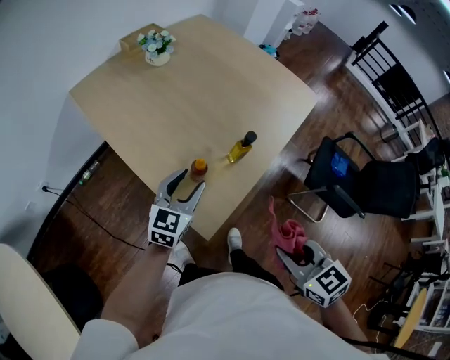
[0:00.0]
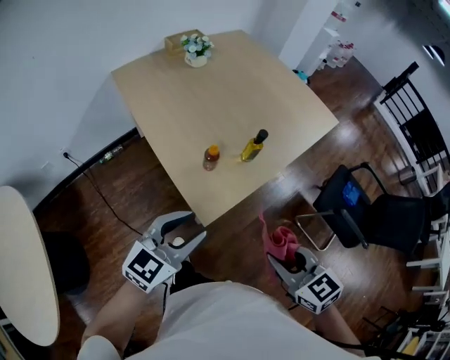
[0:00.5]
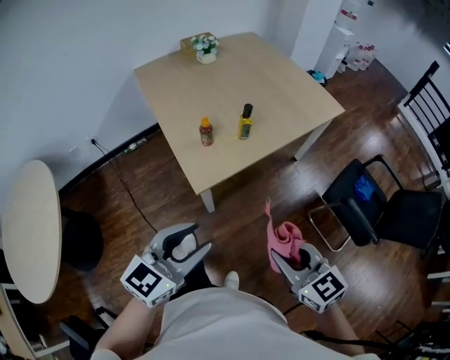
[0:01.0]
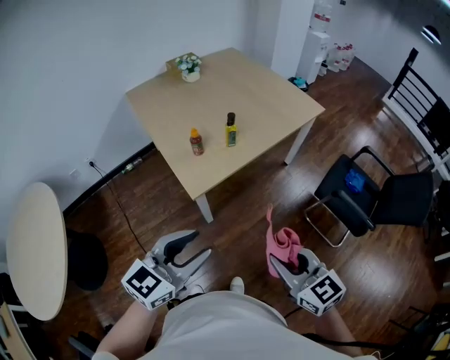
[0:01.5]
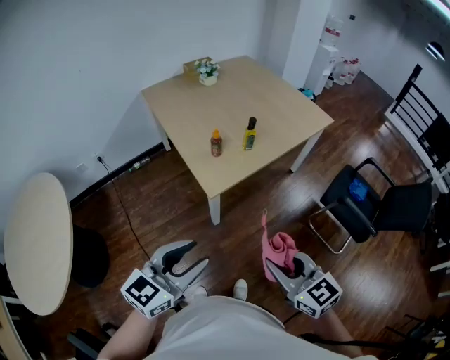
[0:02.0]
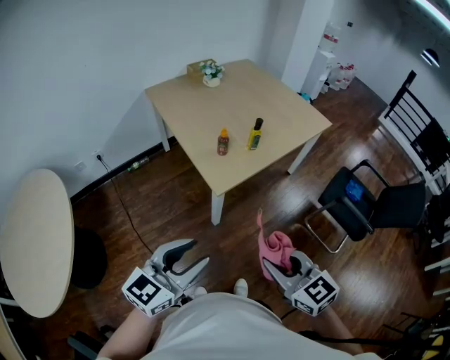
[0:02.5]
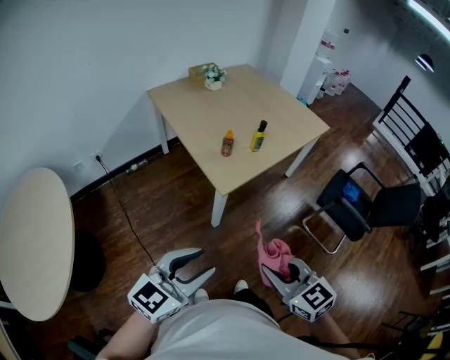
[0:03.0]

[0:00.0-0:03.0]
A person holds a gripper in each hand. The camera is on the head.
0:00.0 to 0:01.5: The left gripper goes about 40 cm backward, while the right gripper shifts some 25 cm backward and to the right, and turns by approximately 20 degrees.
0:01.5 to 0:03.0: The two grippers go approximately 20 cm to the left and backward.

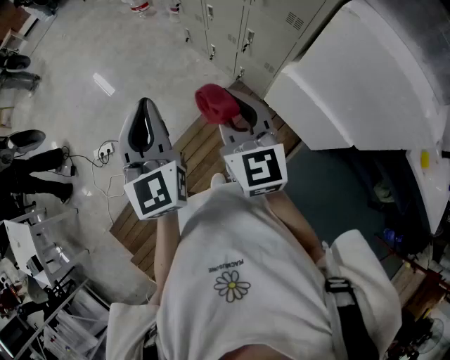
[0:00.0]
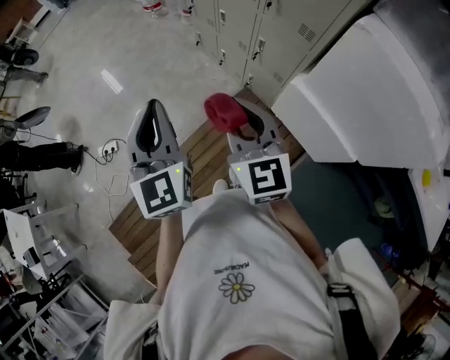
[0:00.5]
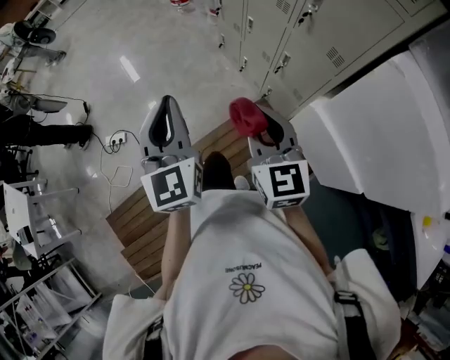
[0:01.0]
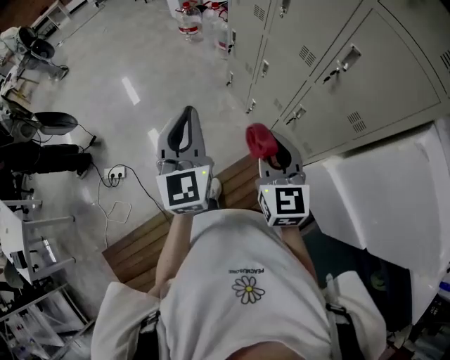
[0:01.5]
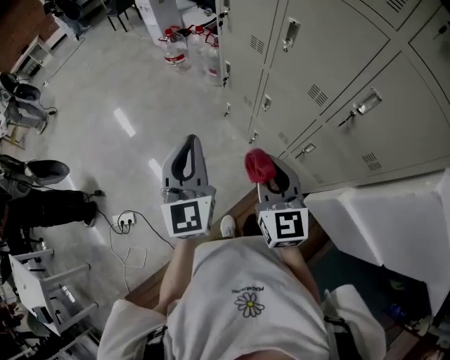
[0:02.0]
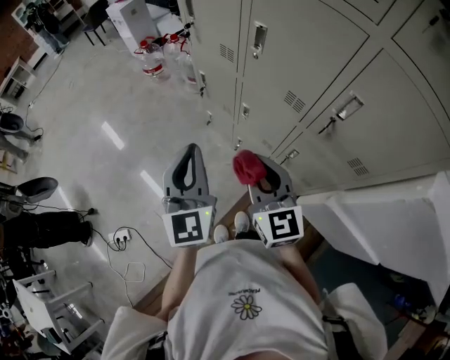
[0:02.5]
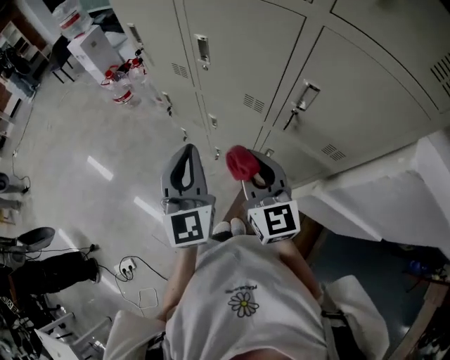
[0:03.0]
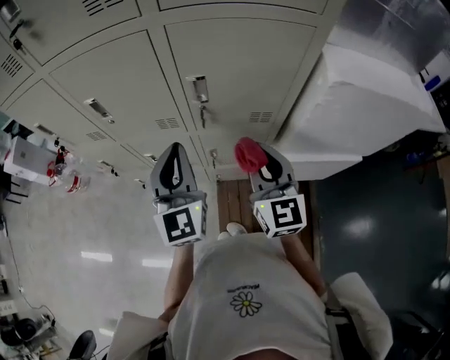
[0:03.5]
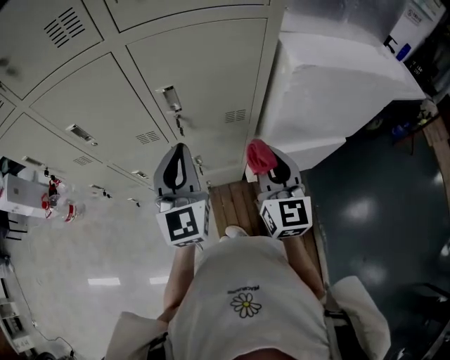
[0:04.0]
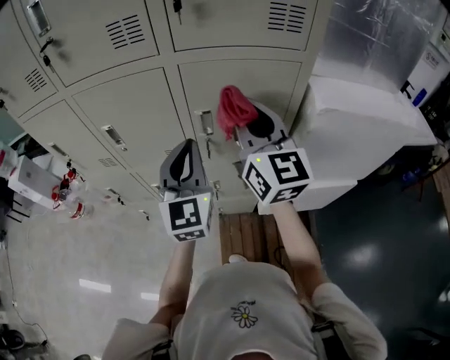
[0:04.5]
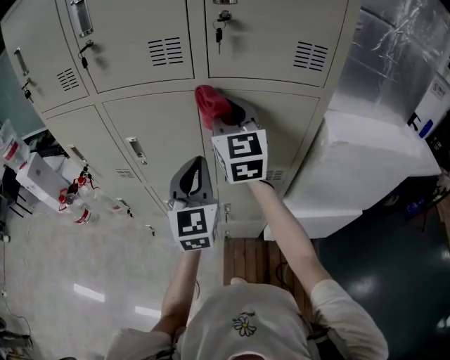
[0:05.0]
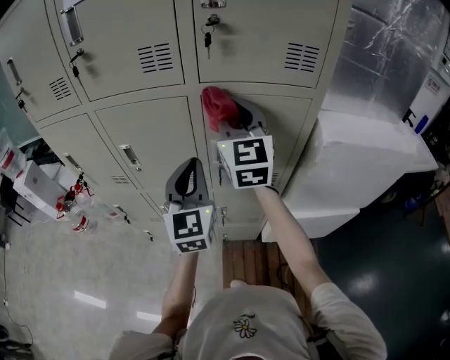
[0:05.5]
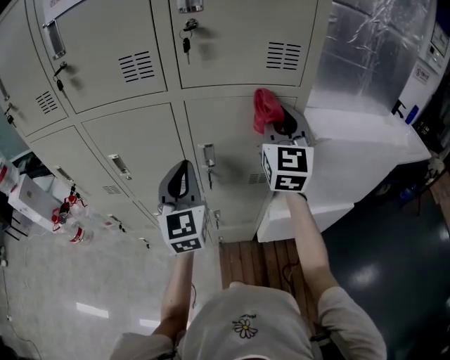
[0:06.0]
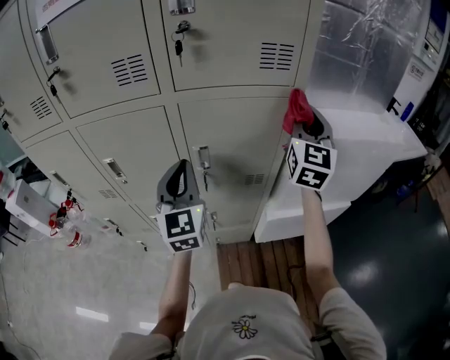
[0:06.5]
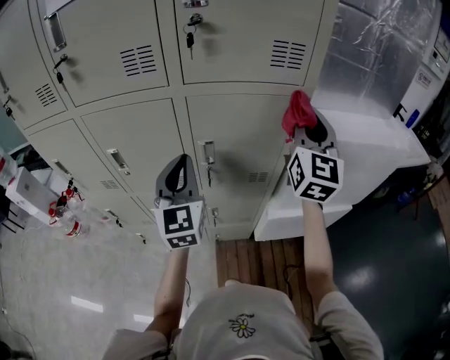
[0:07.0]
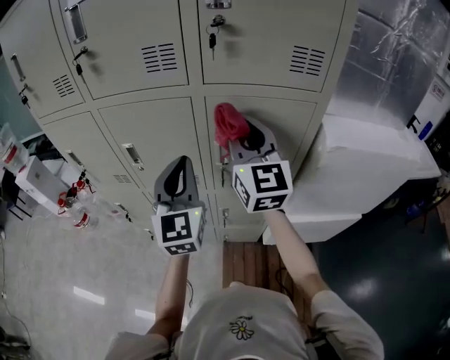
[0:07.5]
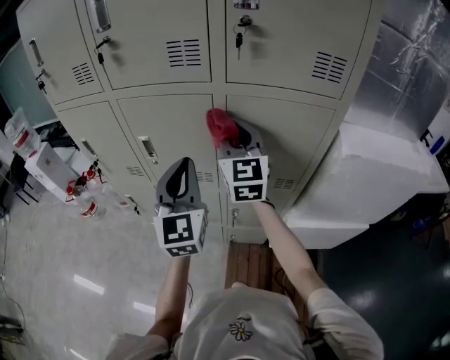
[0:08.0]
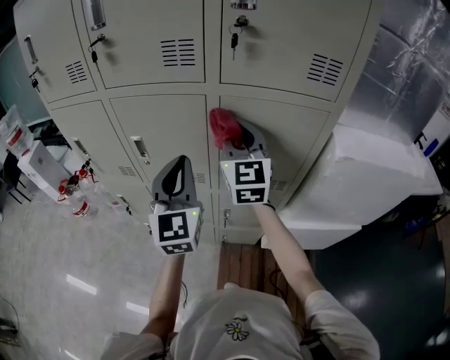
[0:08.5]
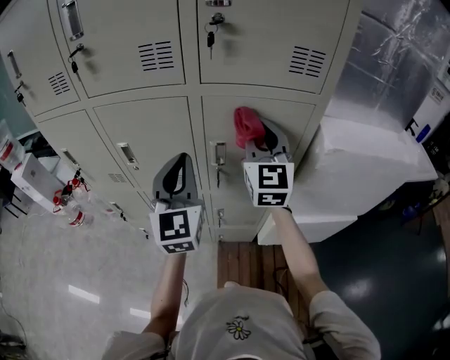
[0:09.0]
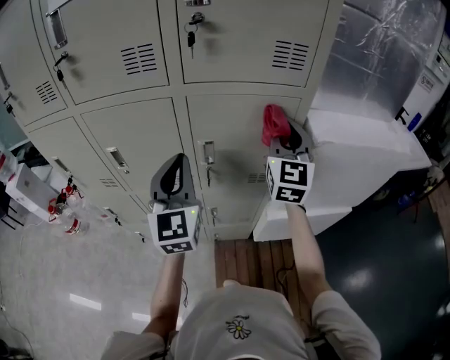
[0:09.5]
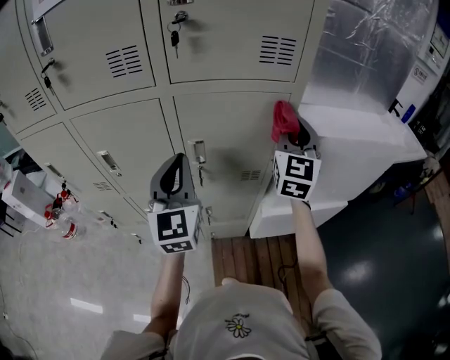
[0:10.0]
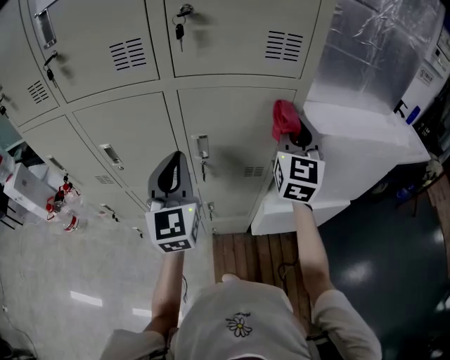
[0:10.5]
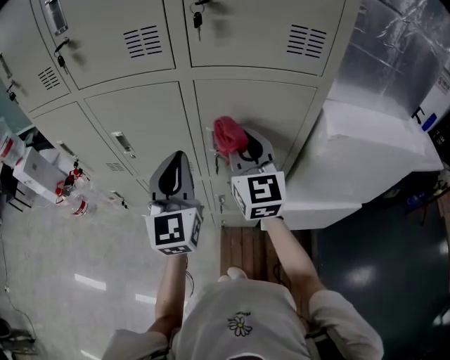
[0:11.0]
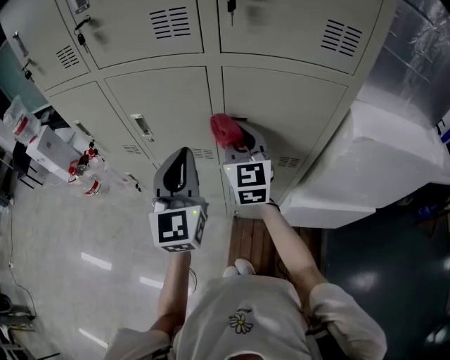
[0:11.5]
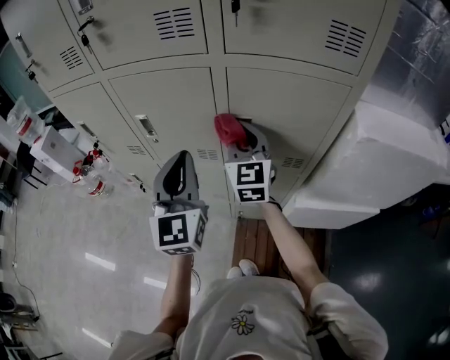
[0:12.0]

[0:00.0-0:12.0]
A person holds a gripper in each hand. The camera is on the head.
0:00.0 to 0:02.0: The two grippers go approximately 40 cm forward.
0:02.0 to 0:04.0: The left gripper moves roughly 35 cm, and rotates about 60 degrees; the right gripper shifts by approximately 30 cm, and turns by roughly 60 degrees.
0:04.0 to 0:06.0: The right gripper moves upward and forward, some 25 cm, and rotates approximately 20 degrees. The left gripper travels upward, forward and to the left by about 10 cm.
0:06.0 to 0:08.0: The left gripper goes about 5 cm to the left, while the right gripper moves to the left, approximately 20 cm, and changes its angle by approximately 20 degrees.
0:08.0 to 0:10.0: The right gripper goes roughly 25 cm to the right, and rotates some 30 degrees, while the left gripper goes roughly 10 cm to the right.
0:10.0 to 0:12.0: The right gripper shifts approximately 25 cm to the left and downward, and rotates about 30 degrees. The left gripper moves to the left, about 10 cm.

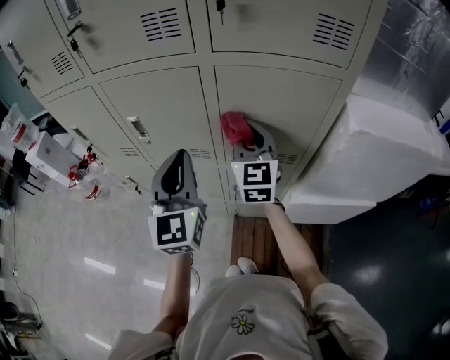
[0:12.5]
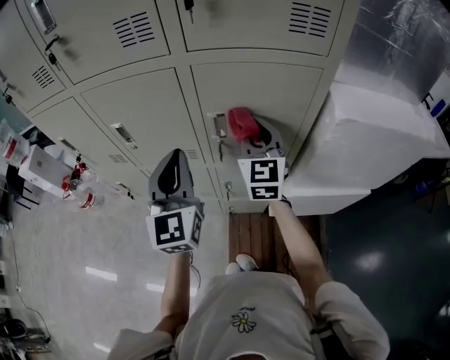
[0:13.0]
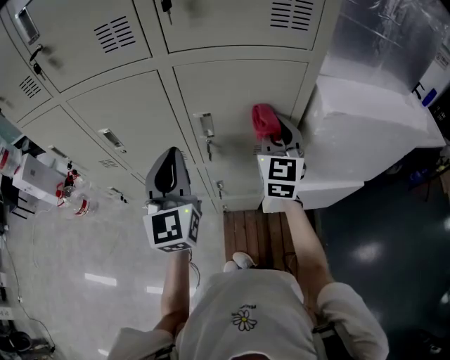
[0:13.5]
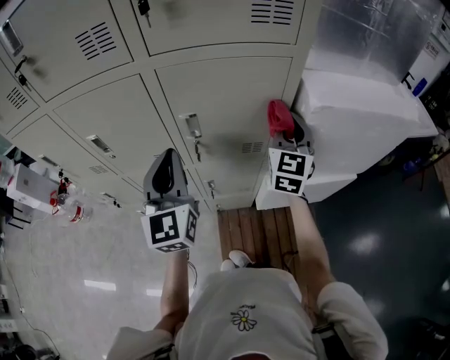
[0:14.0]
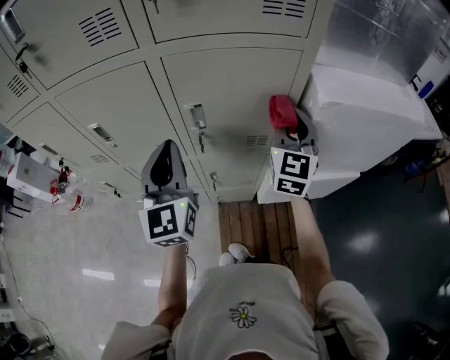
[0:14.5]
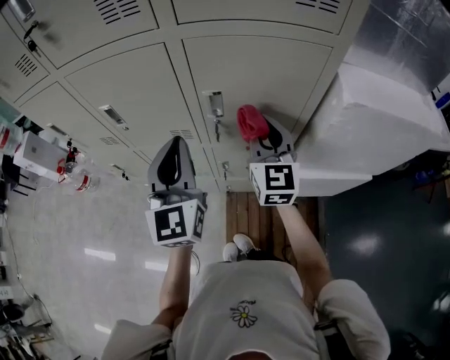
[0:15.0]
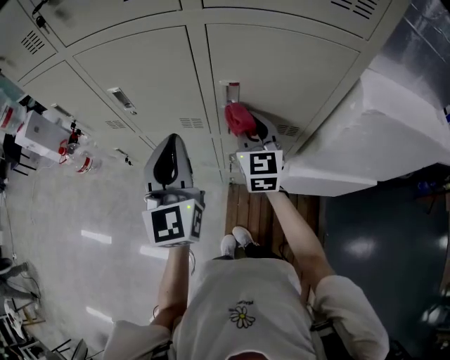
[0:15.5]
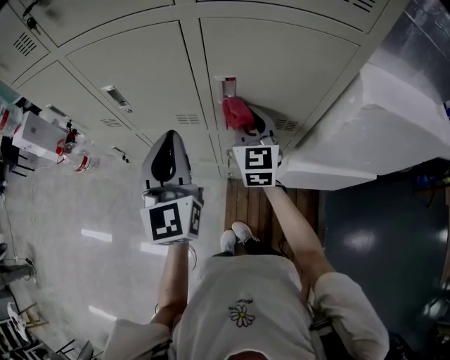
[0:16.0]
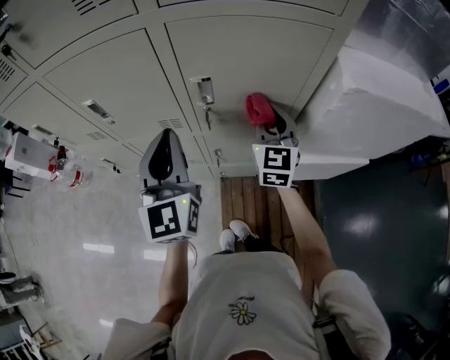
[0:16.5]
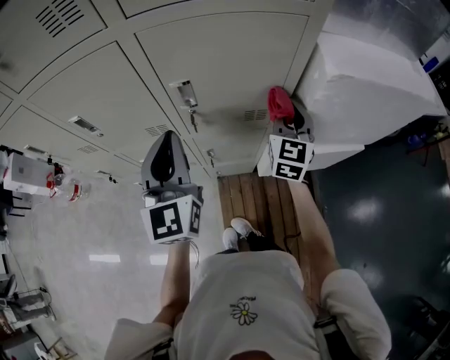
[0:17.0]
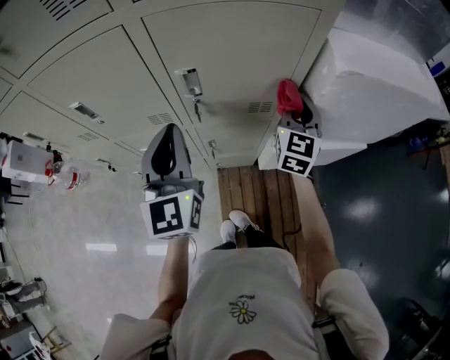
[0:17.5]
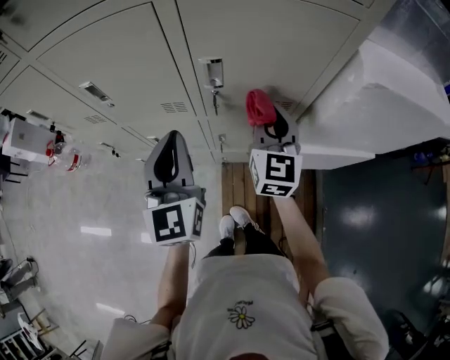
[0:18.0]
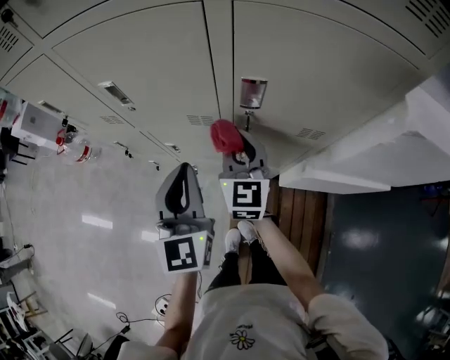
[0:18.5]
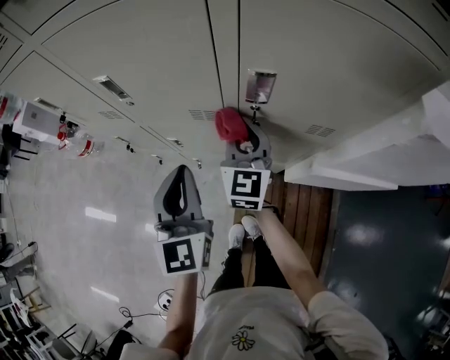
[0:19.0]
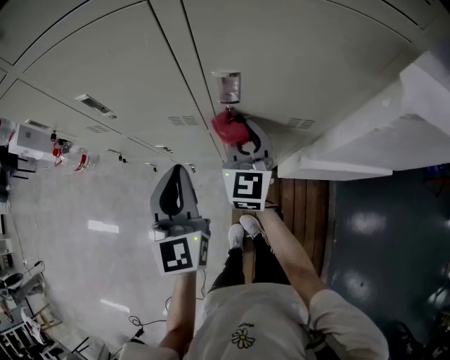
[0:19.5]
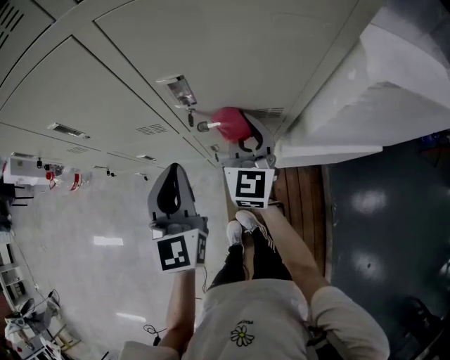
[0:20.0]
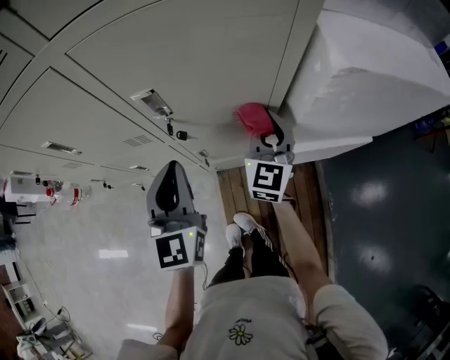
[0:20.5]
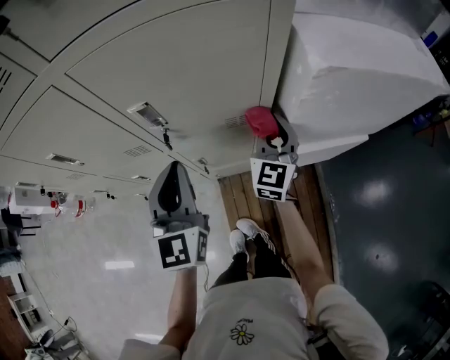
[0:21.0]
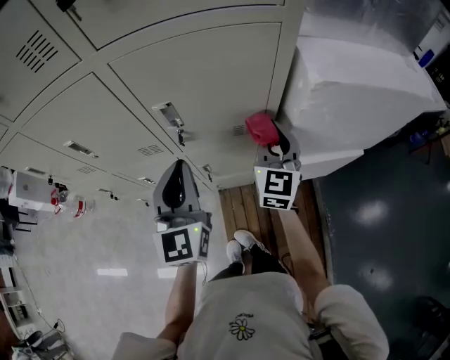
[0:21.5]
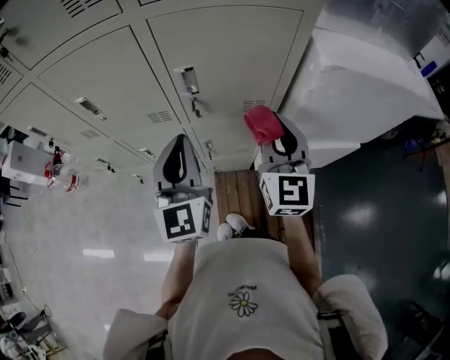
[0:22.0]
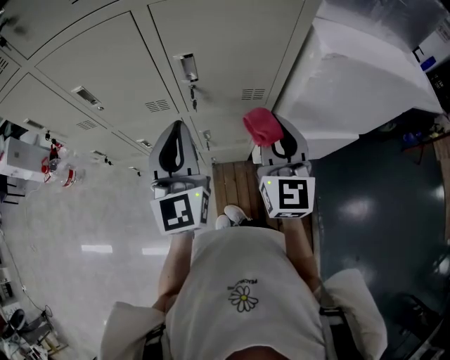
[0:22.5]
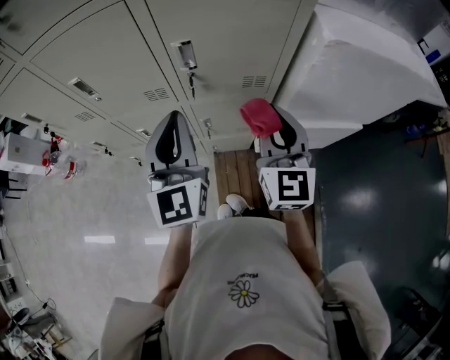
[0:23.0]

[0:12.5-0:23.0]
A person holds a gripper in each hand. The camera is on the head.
0:12.5 to 0:14.5: The right gripper travels to the right by approximately 20 cm, and changes its angle by about 20 degrees. Meanwhile the left gripper moves to the right, approximately 5 cm.
0:14.5 to 0:16.5: The right gripper goes roughly 10 cm downward and to the left.
0:16.5 to 0:19.0: The right gripper shifts roughly 20 cm to the left and downward. Meanwhile the left gripper goes roughly 10 cm downward and to the left.
0:19.0 to 0:21.0: The left gripper shifts some 15 cm to the right; the right gripper travels to the right by about 30 cm, and changes its angle by roughly 30 degrees.
0:21.0 to 0:23.0: The right gripper goes some 20 cm backward, upward and to the left, and changes its angle by about 20 degrees, while the left gripper travels backward and upward by about 10 cm.

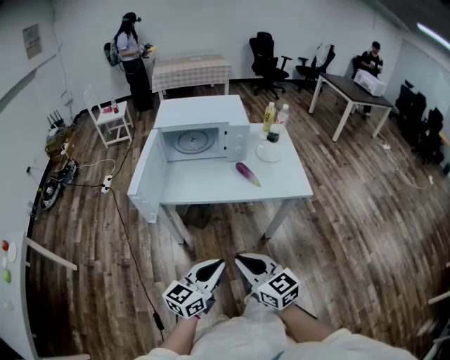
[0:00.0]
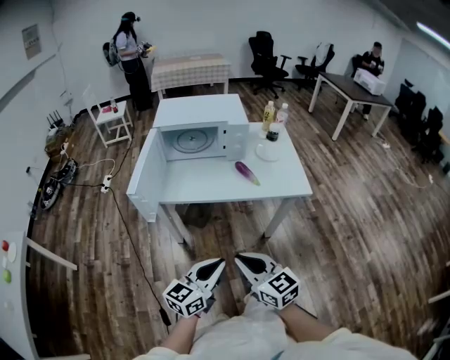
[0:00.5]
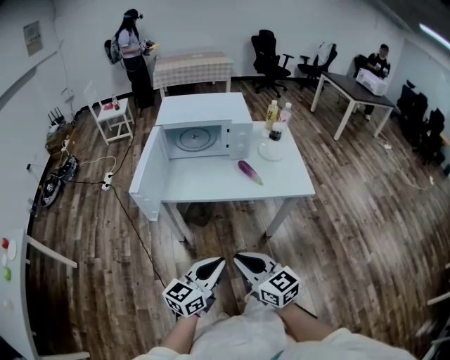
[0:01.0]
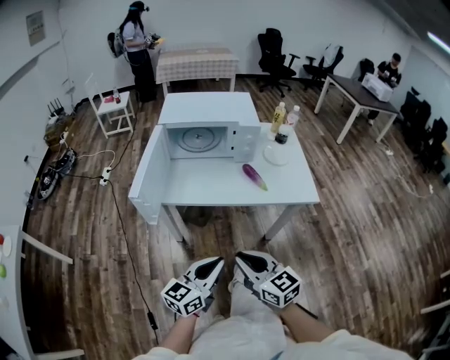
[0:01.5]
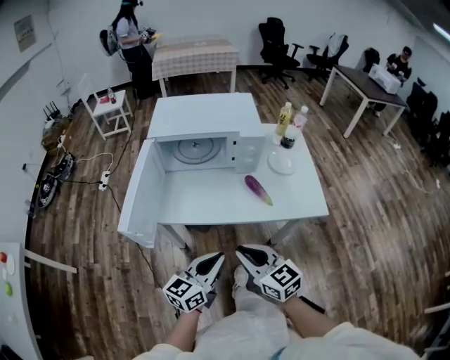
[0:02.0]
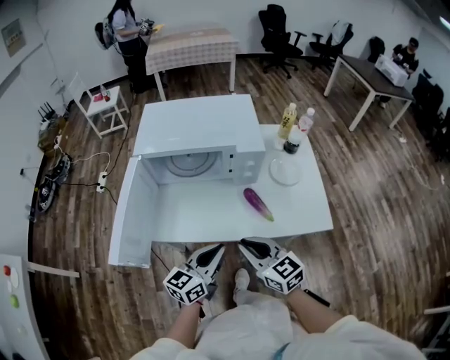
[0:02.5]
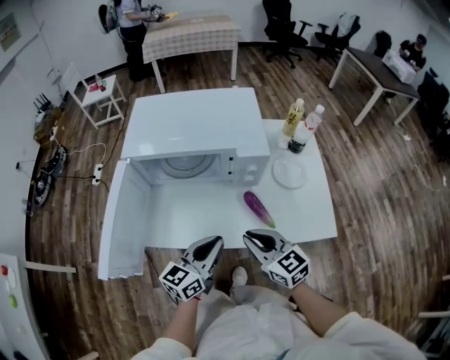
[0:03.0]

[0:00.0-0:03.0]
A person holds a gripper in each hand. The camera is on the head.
0:00.0 to 0:01.5: There are only small adjustments of the grippers.
0:01.5 to 0:03.0: The grippers both shift forward by roughly 30 cm.
